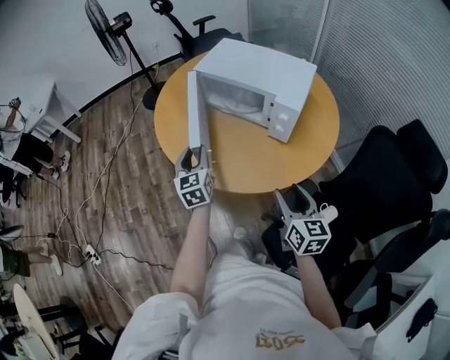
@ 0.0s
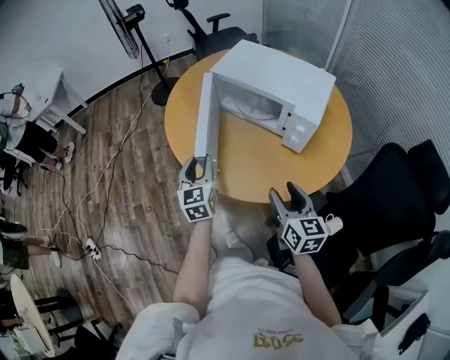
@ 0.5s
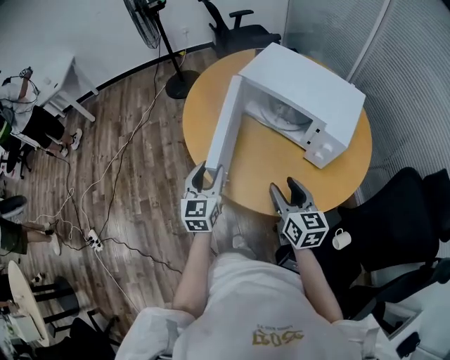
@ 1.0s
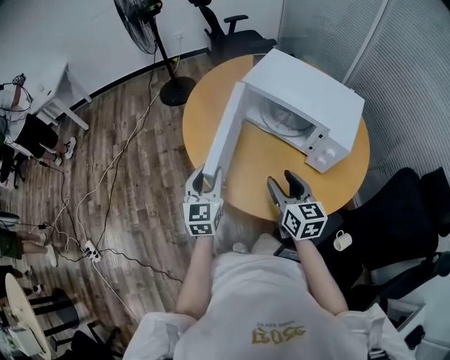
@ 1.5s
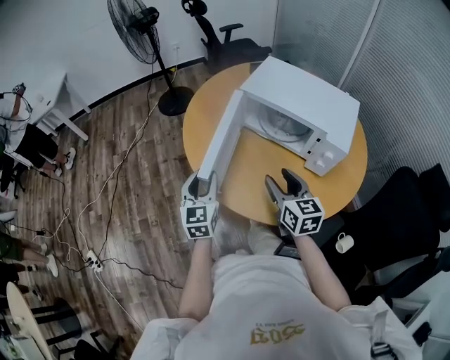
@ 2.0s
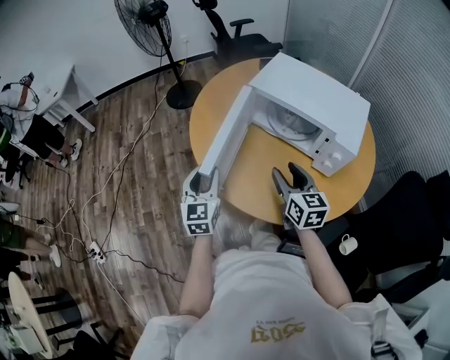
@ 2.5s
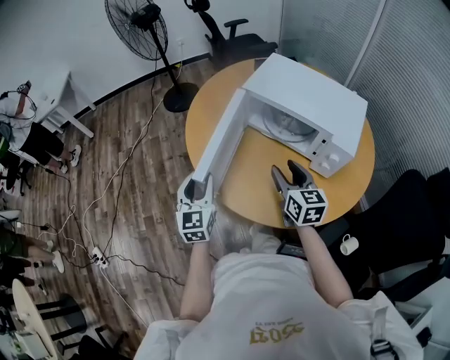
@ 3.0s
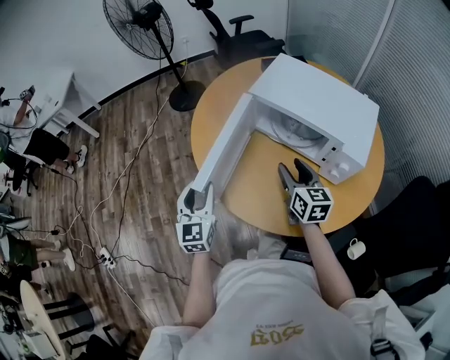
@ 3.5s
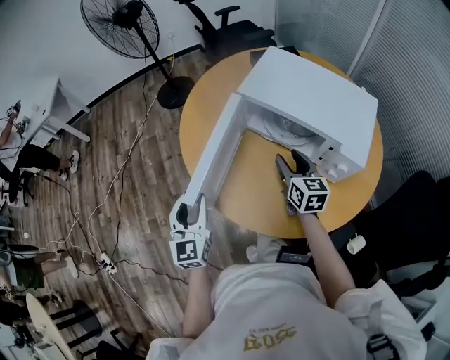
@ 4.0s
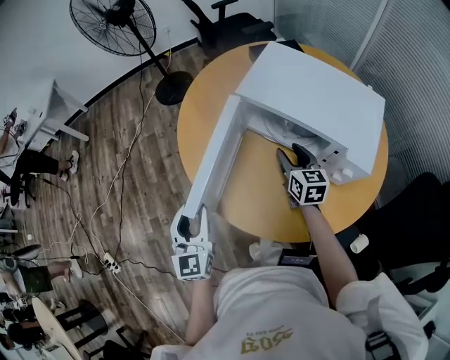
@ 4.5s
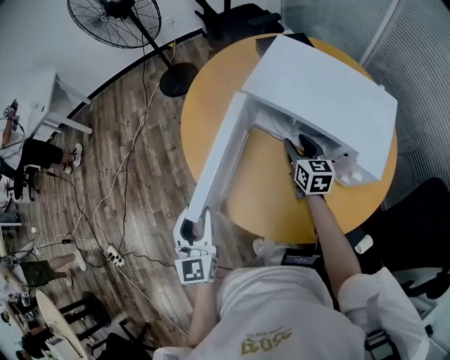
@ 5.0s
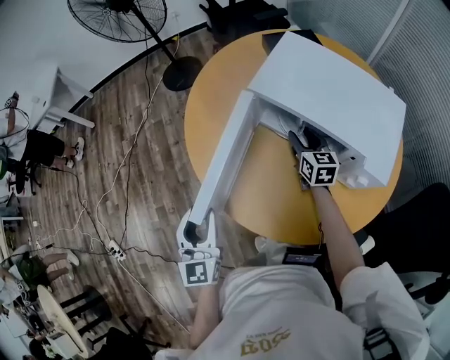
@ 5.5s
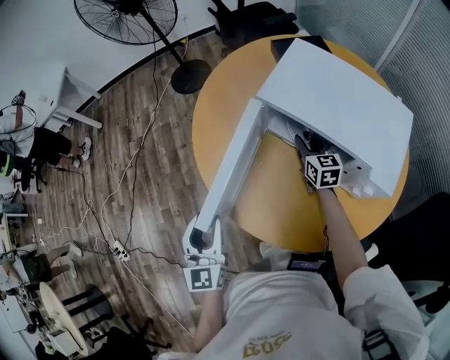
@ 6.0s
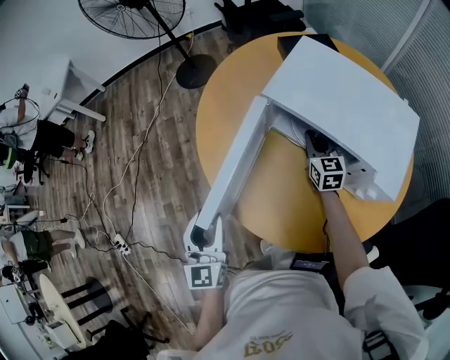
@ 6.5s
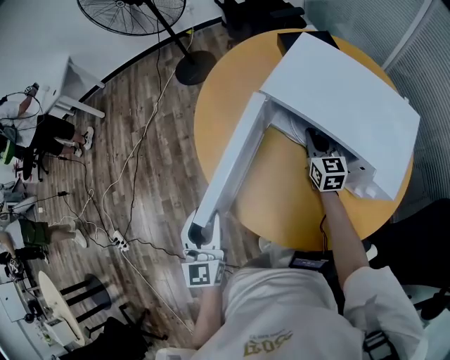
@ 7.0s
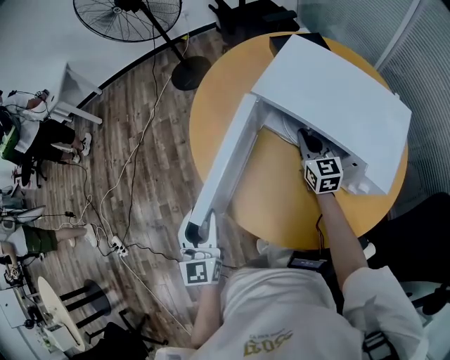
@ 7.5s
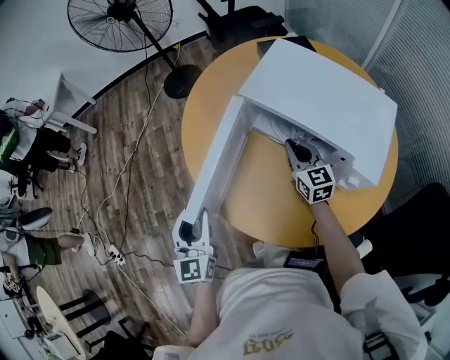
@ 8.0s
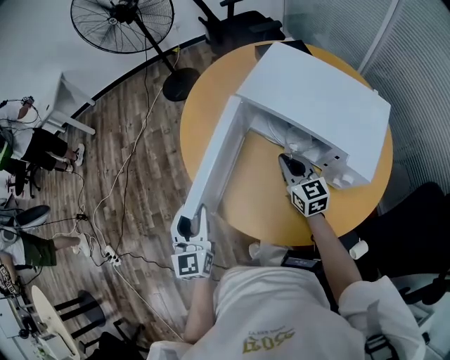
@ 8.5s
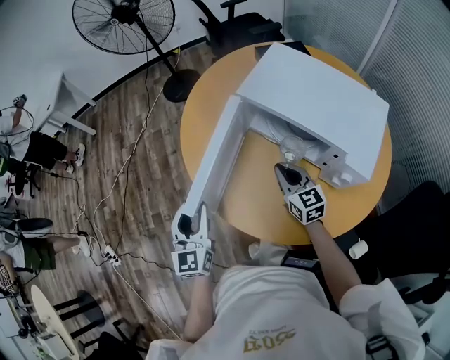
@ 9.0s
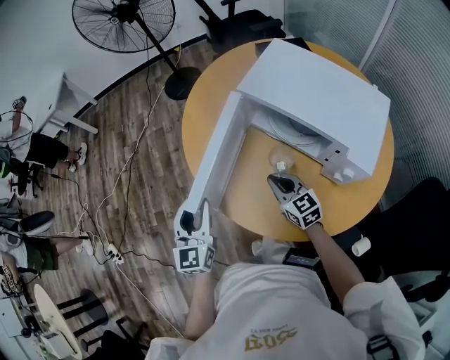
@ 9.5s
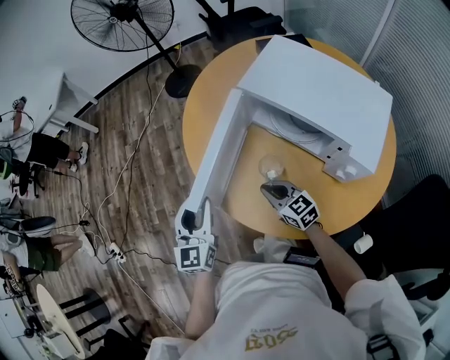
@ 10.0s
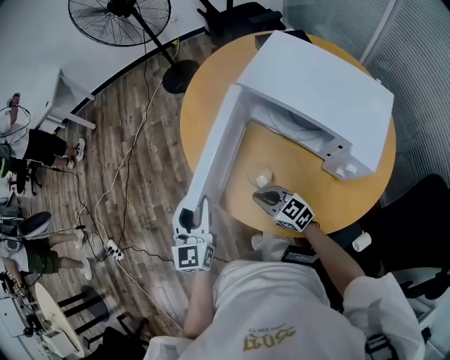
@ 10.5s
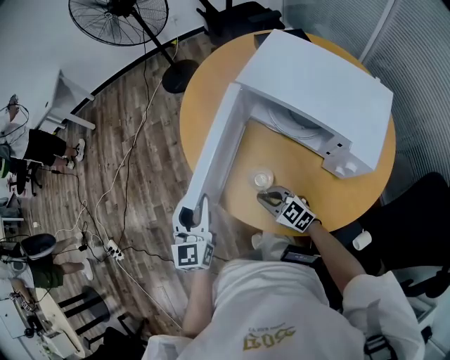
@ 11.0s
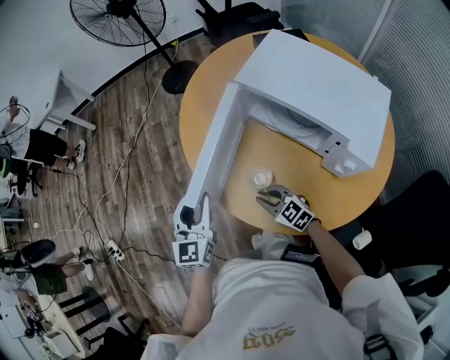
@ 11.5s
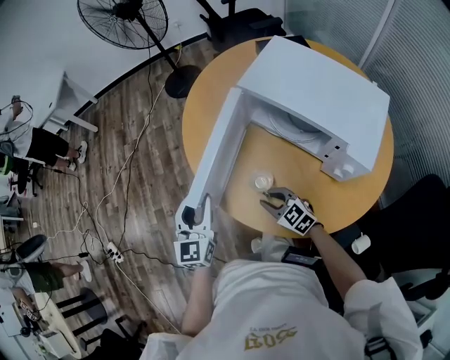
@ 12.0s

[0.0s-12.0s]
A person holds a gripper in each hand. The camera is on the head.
0.0s to 2.0s: The left gripper goes roughly 10 cm to the left. The right gripper heads forward and to the left, covering about 25 cm.
2.0s to 4.0s: The right gripper travels forward, downward and to the right by roughly 15 cm.
4.0s to 6.0s: The right gripper heads forward and downward, covering approximately 15 cm.
6.0s to 8.0s: The right gripper moves backward and upward, approximately 10 cm.
8.0s to 10.0s: The right gripper heads to the left, backward and downward, covering approximately 20 cm, and swivels roughly 30 degrees.
10.0s to 12.0s: The right gripper shifts by approximately 5 cm.

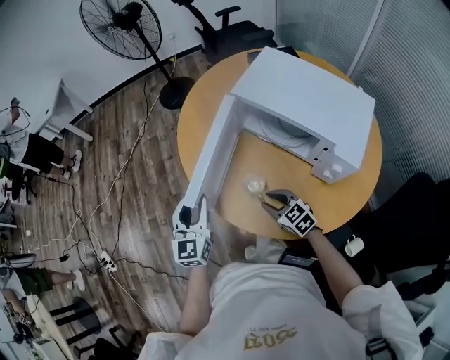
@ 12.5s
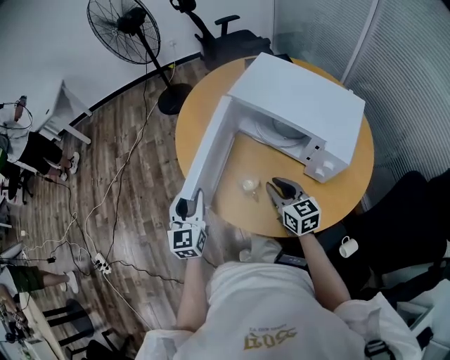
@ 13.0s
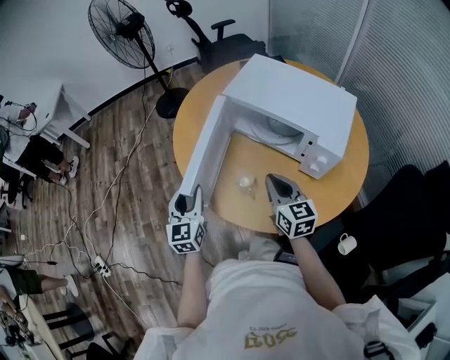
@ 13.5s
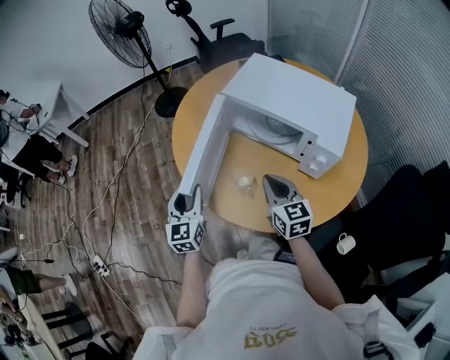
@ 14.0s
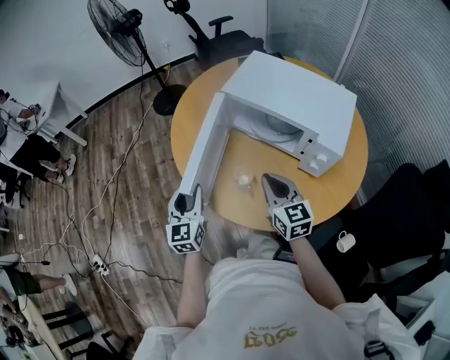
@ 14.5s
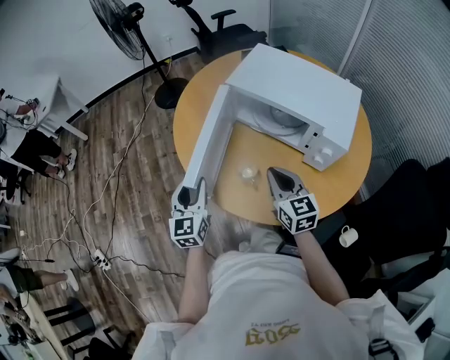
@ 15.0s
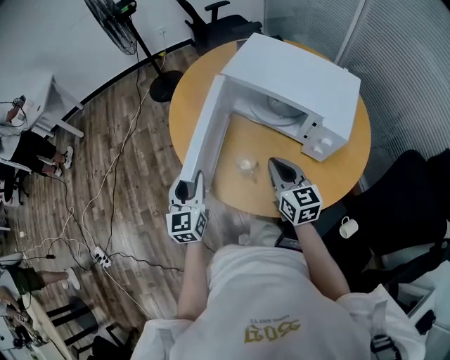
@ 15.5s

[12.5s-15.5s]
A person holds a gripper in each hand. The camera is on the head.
12.5s to 14.0s: The right gripper shifts some 15 cm upward, and changes its angle by roughly 40 degrees.
14.0s to 15.5s: Both grippers stay about where they are.

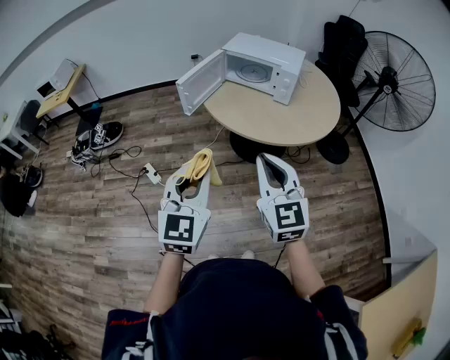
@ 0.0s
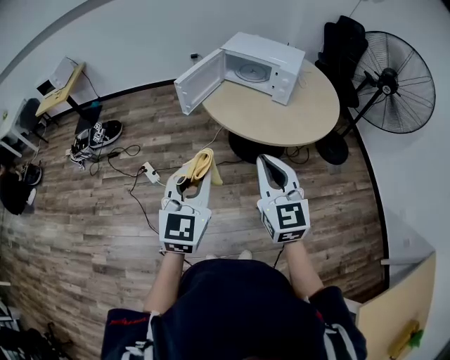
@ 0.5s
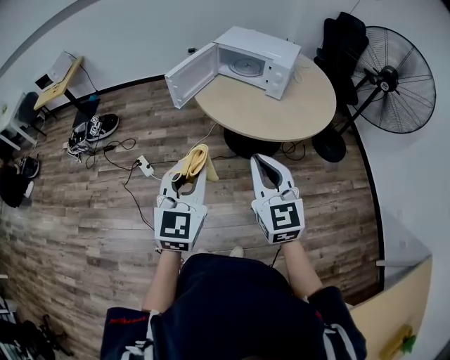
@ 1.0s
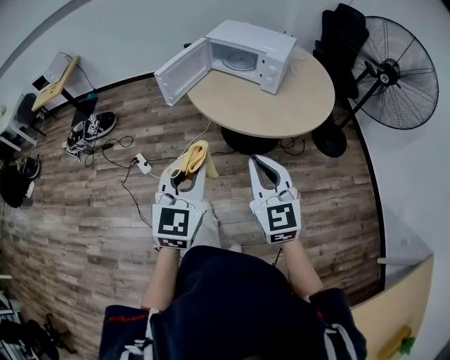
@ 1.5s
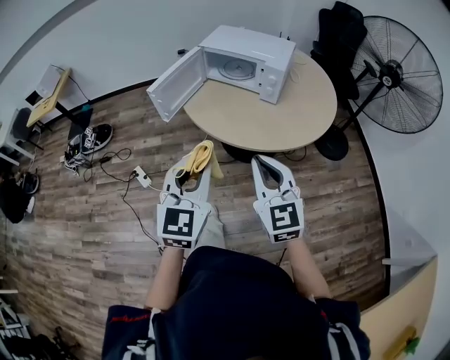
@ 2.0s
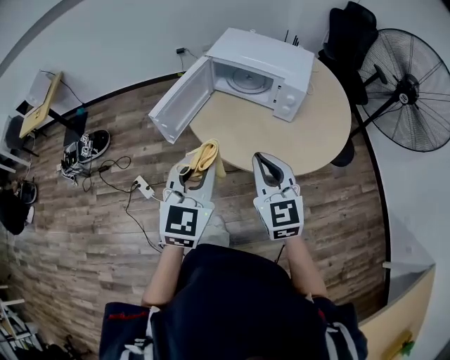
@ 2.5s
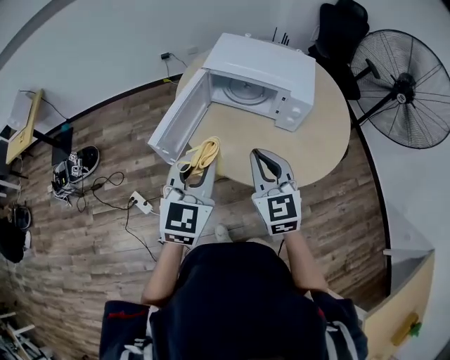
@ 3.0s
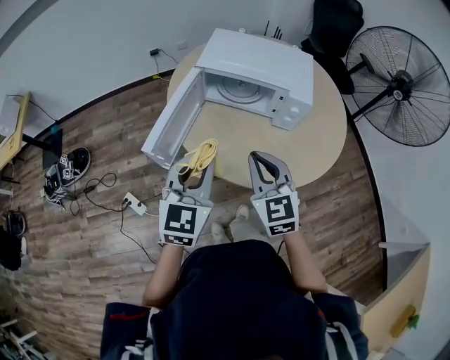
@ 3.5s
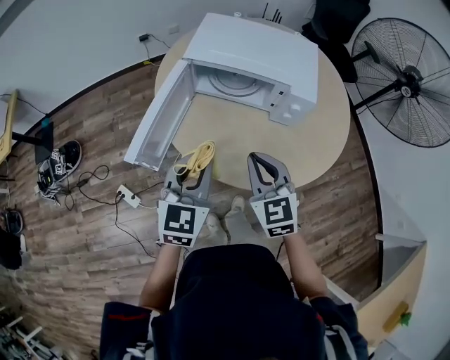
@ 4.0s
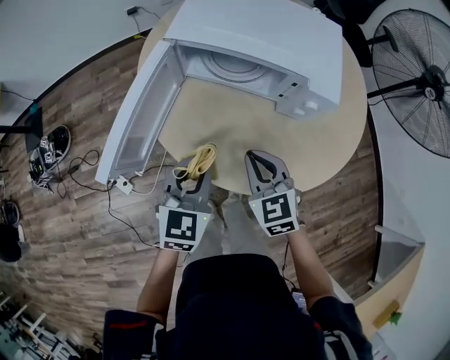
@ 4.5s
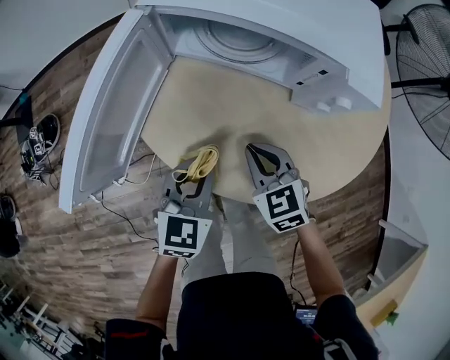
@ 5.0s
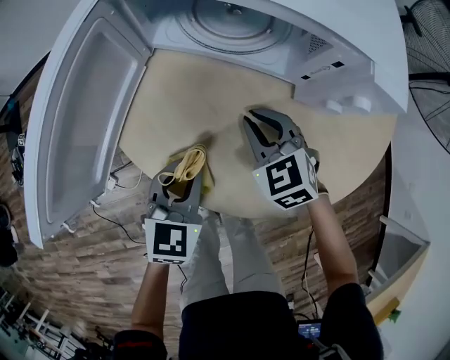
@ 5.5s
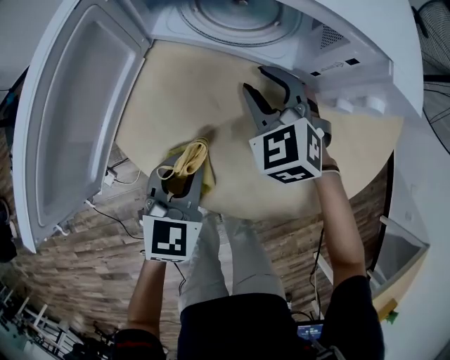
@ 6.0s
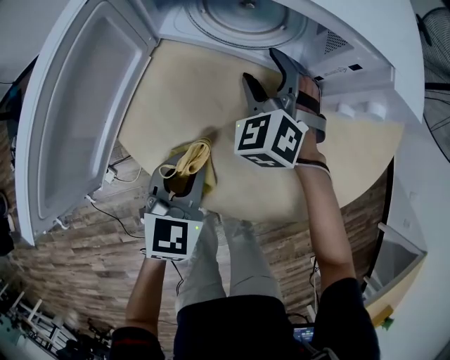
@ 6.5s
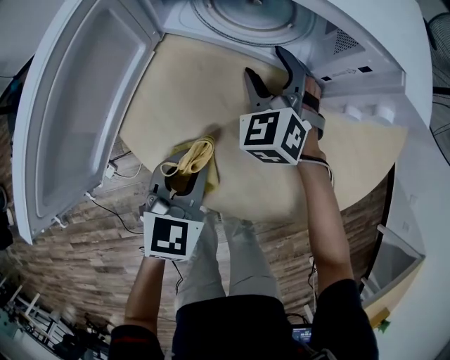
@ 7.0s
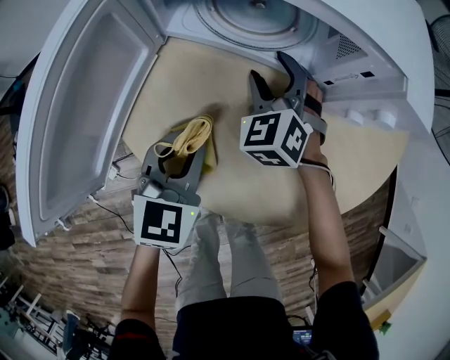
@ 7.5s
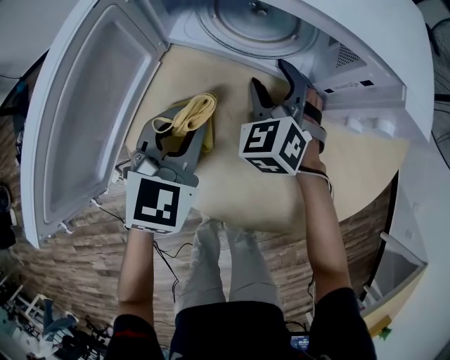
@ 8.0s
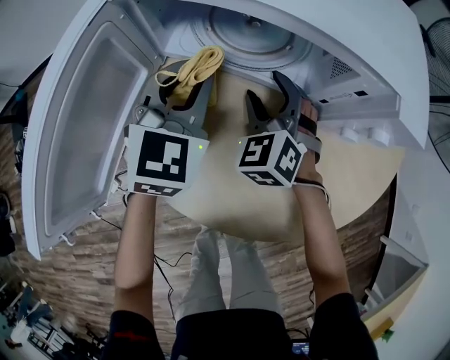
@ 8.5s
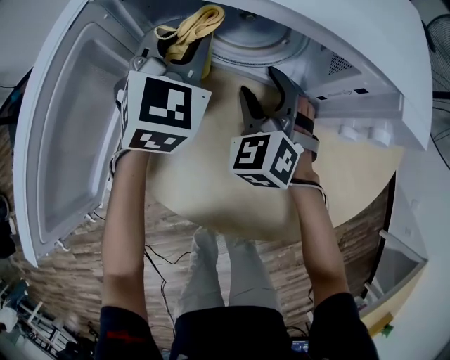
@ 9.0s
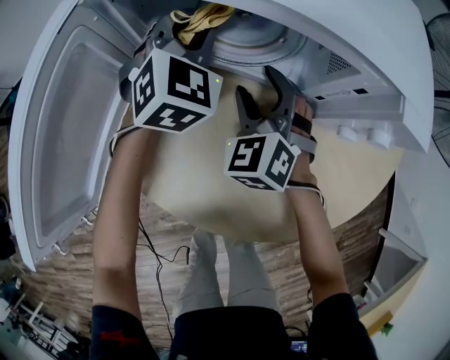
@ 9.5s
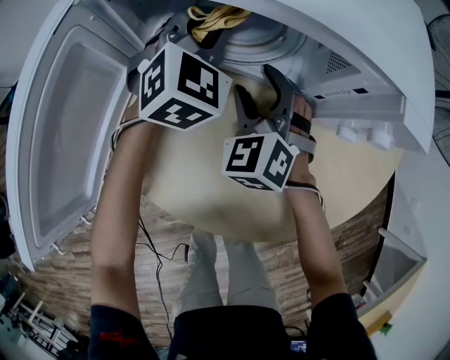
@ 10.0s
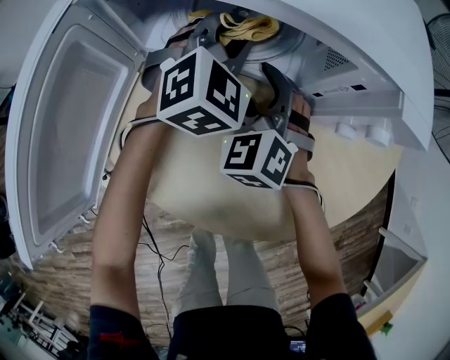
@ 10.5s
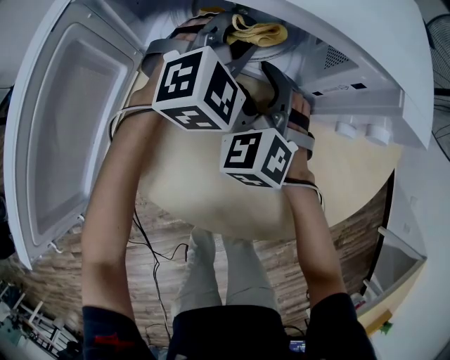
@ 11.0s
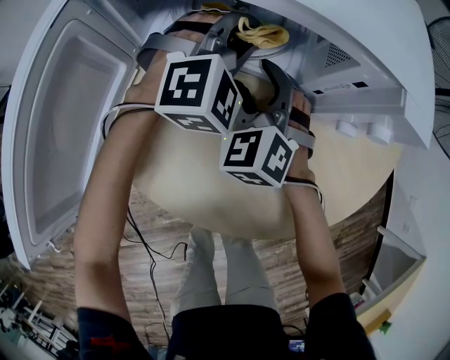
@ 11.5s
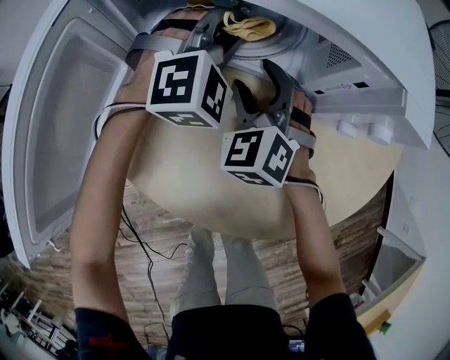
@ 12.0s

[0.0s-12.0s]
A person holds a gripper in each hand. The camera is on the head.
0.0s to 2.0s: Both grippers move forward and to the right, roughly 15 cm.
2.0s to 4.0s: The two grippers go about 35 cm forward.
4.0s to 6.0s: The right gripper travels downward and forward by about 35 cm, changes its angle by approximately 30 degrees, and opens up. Meanwhile the left gripper is displaced downward by approximately 30 cm.
6.0s to 8.0s: The right gripper opens, while the left gripper is displaced forward by about 10 cm.
8.0s to 10.0s: The left gripper travels forward by some 20 cm, and turns by roughly 20 degrees.
10.0s to 12.0s: The left gripper changes its angle by roughly 30 degrees.
